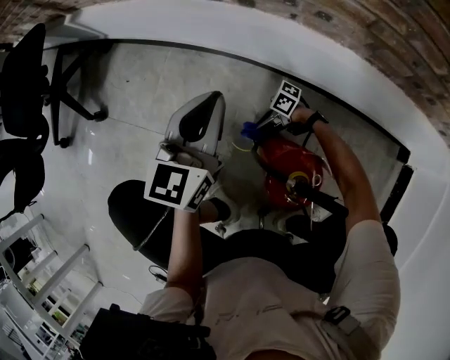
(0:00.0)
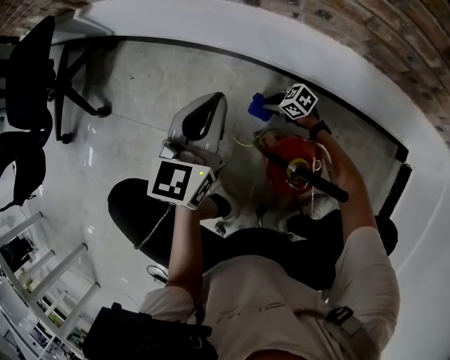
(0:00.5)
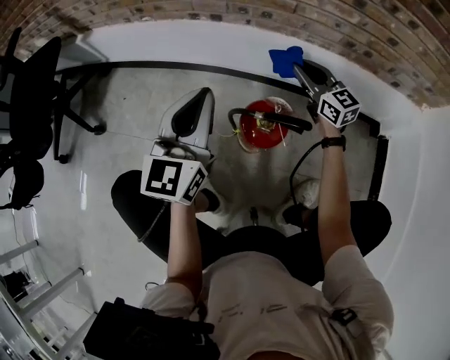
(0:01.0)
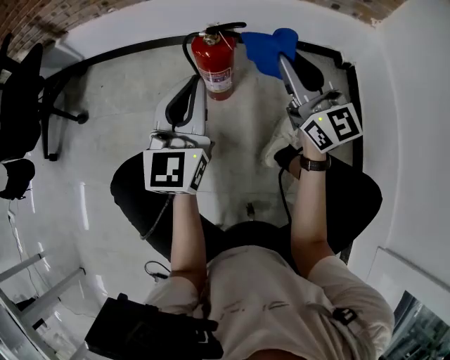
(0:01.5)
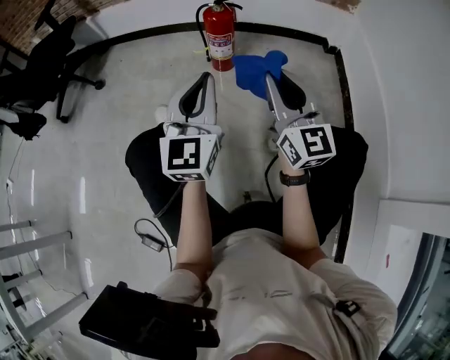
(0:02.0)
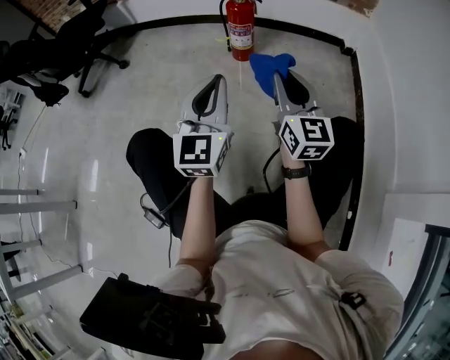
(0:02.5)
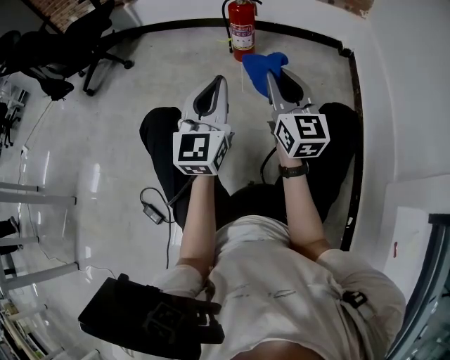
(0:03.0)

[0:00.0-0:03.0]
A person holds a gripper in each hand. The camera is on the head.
0:00.0 to 0:01.5: The right gripper travels upward by roughly 50 cm, and turns by some 130 degrees, while the left gripper moves some 40 cm, and swivels approximately 20 degrees.
0:01.5 to 0:03.0: The grippers both shift backward by approximately 40 cm.

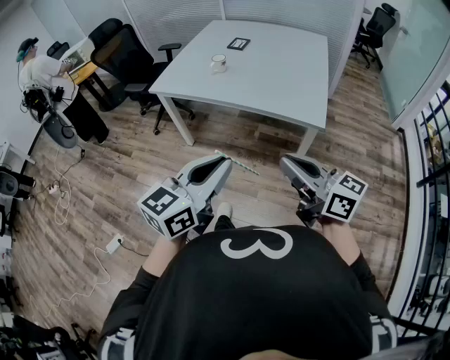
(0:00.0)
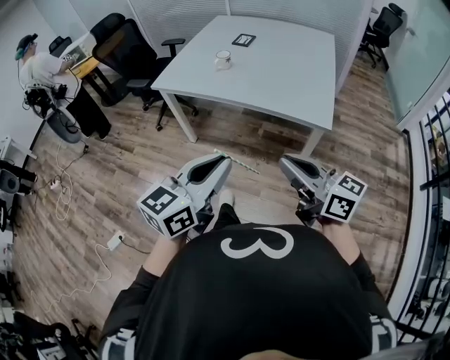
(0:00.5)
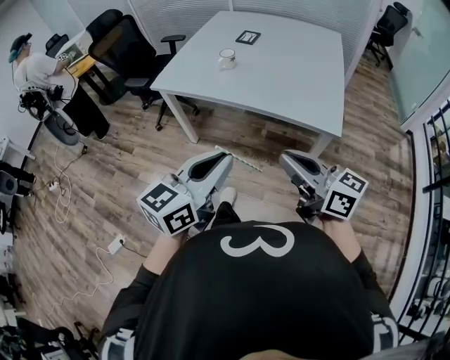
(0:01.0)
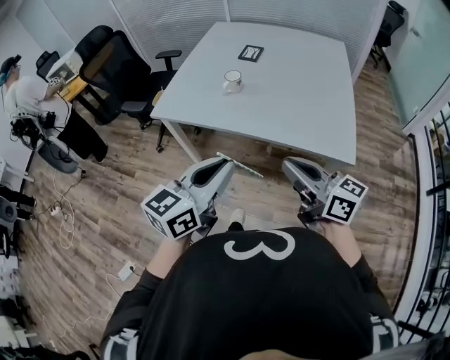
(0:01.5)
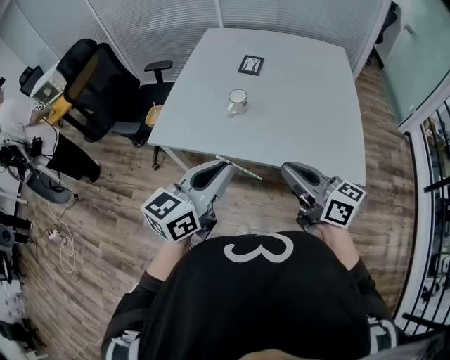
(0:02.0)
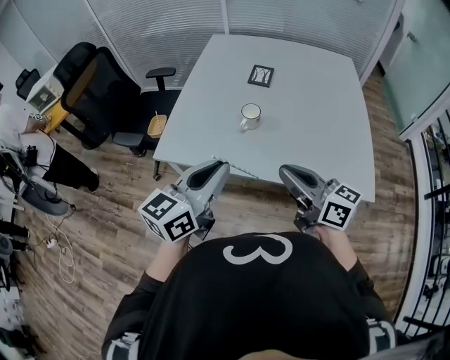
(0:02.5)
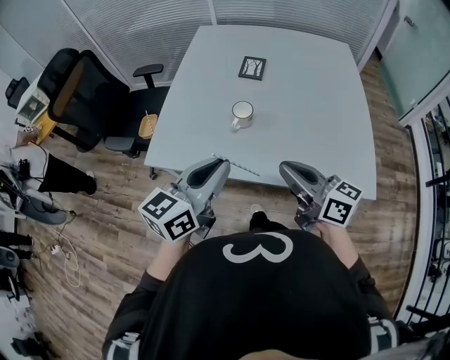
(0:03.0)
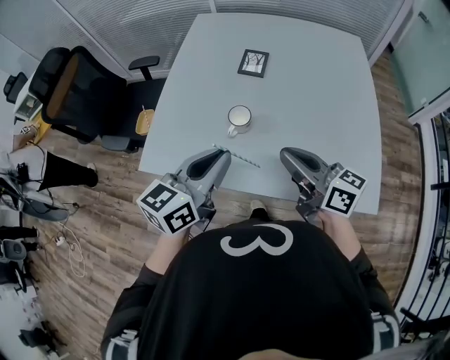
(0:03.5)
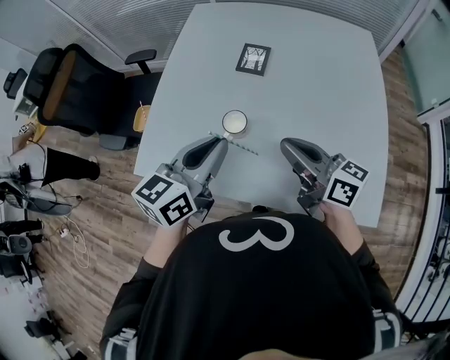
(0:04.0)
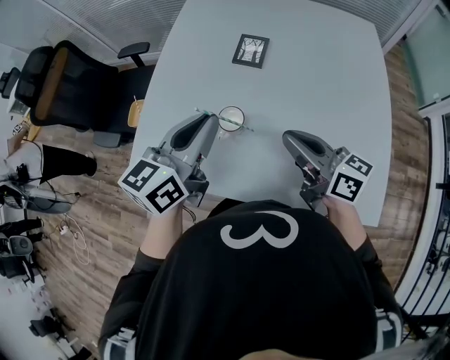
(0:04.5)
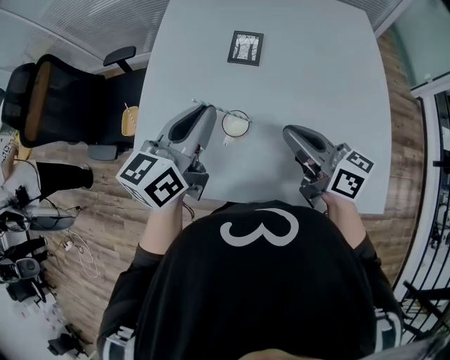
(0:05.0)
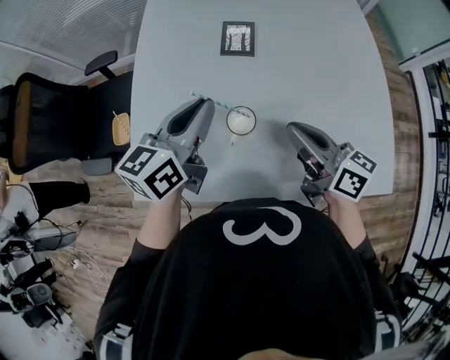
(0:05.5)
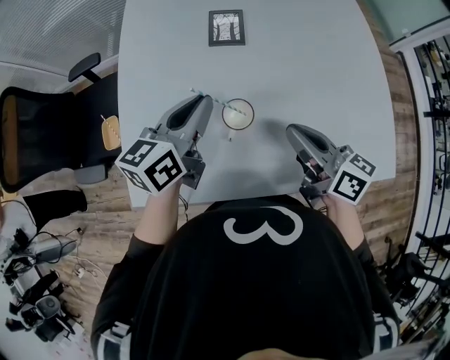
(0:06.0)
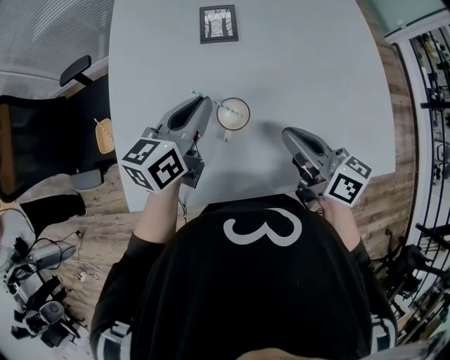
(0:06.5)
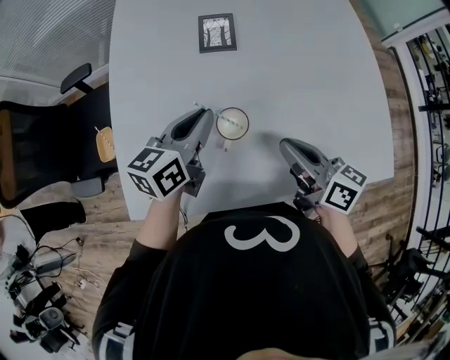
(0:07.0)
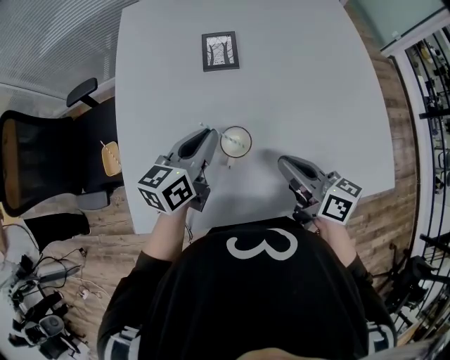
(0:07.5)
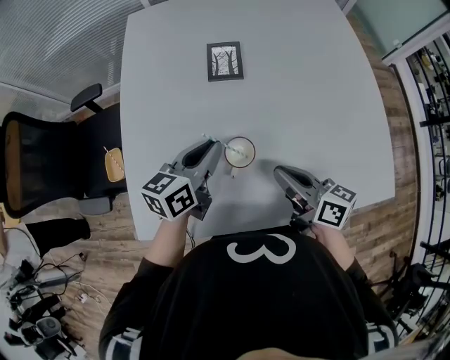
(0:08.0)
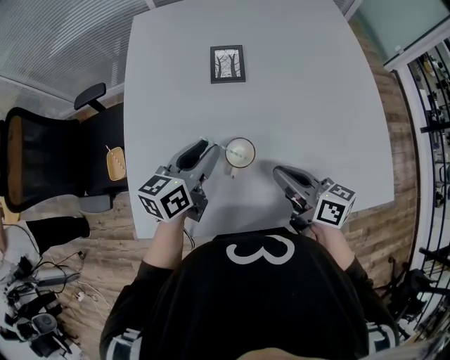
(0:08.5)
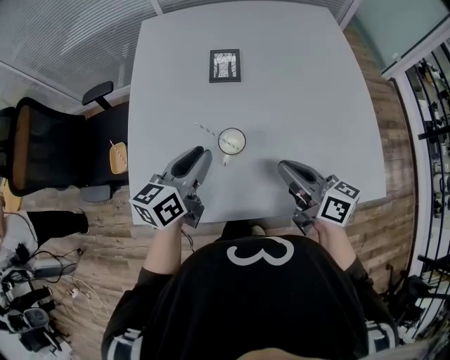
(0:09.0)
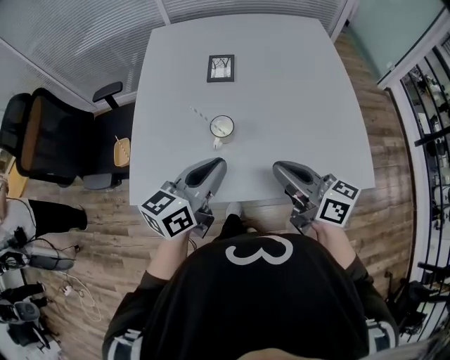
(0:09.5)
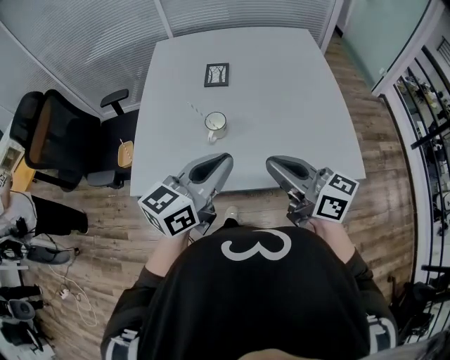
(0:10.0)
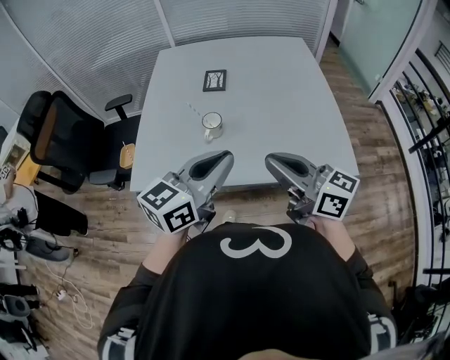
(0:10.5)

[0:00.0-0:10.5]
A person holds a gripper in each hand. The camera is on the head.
0:00.0 to 0:02.0: The two grippers go approximately 35 cm forward.
0:02.0 to 0:04.0: Both grippers move forward, some 30 cm.
0:04.0 to 0:06.5: The left gripper moves forward and downward, about 20 cm. Meanwhile the right gripper shifts about 10 cm downward, and swivels approximately 30 degrees.
0:06.5 to 0:08.5: The left gripper opens.
0:08.5 to 0:10.5: The left gripper heads backward, upward and to the right, covering roughly 40 cm, changes its angle by about 20 degrees, and closes up. The right gripper is displaced backward and upward by about 30 cm, and rotates approximately 30 degrees.

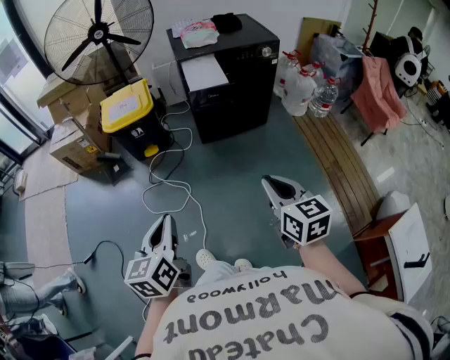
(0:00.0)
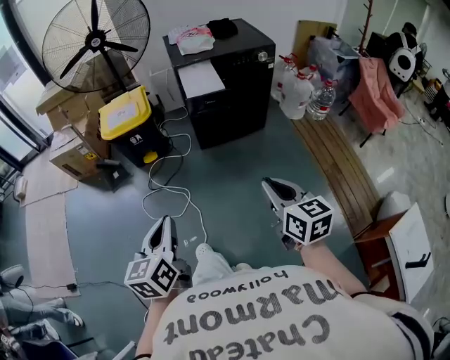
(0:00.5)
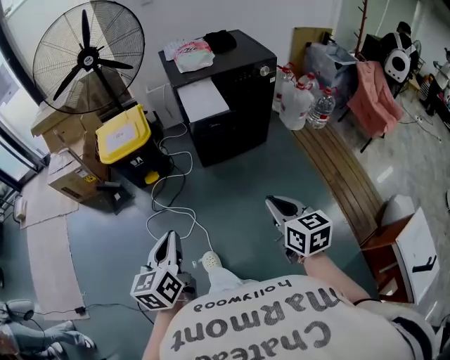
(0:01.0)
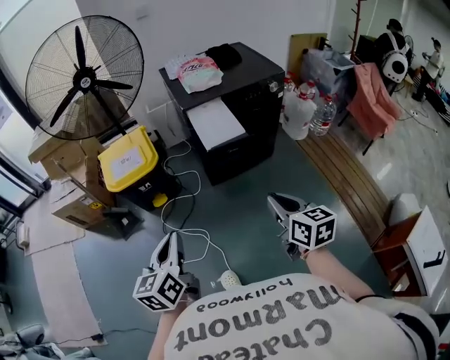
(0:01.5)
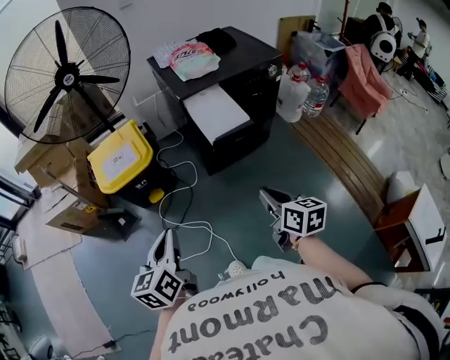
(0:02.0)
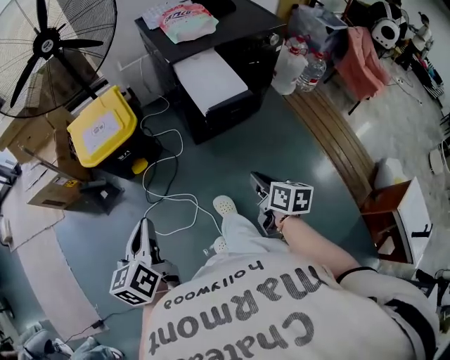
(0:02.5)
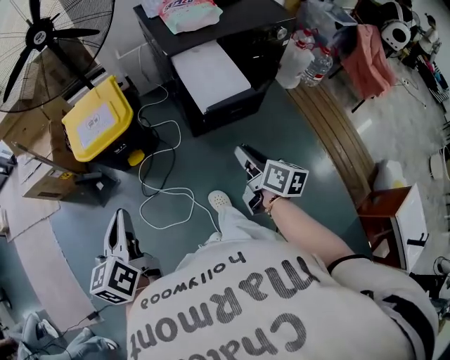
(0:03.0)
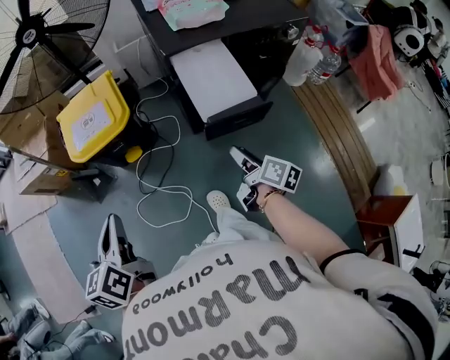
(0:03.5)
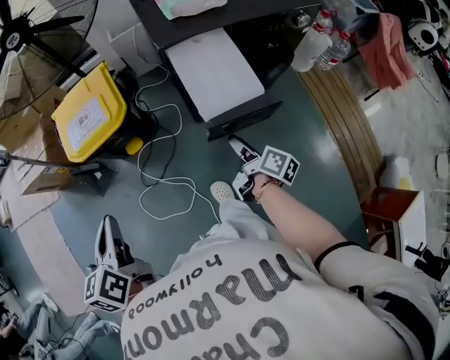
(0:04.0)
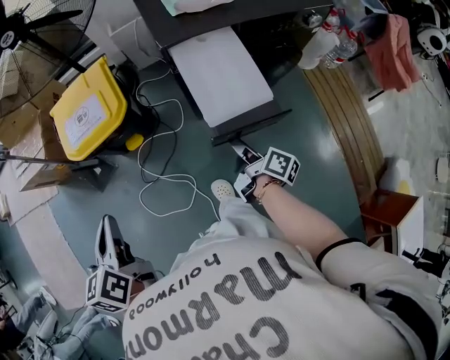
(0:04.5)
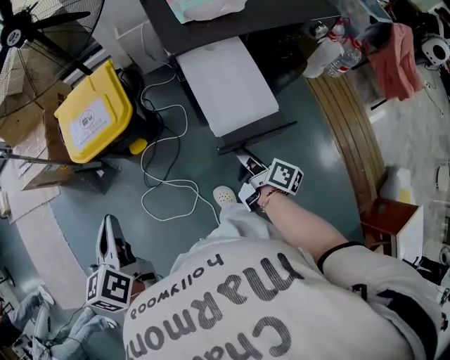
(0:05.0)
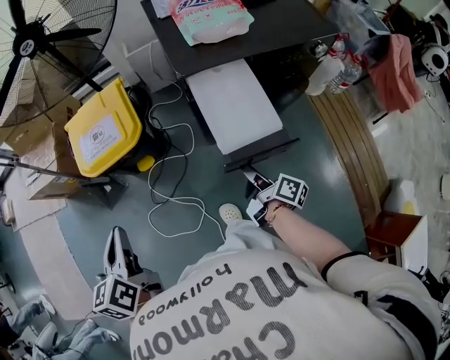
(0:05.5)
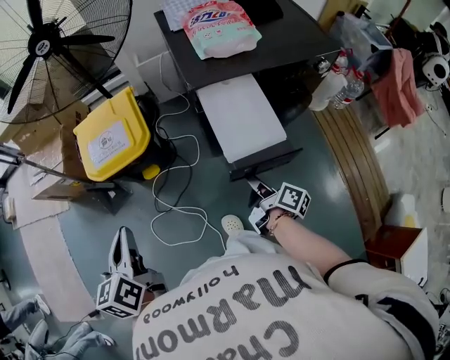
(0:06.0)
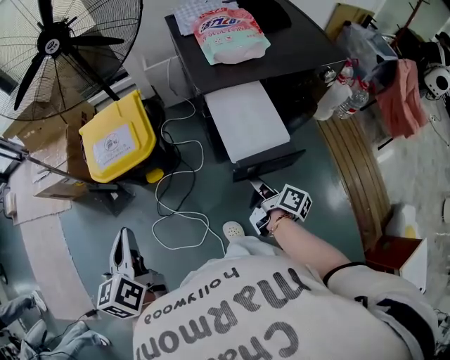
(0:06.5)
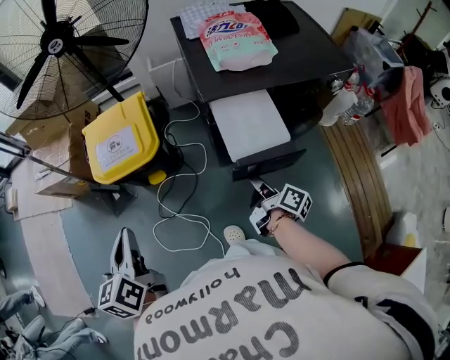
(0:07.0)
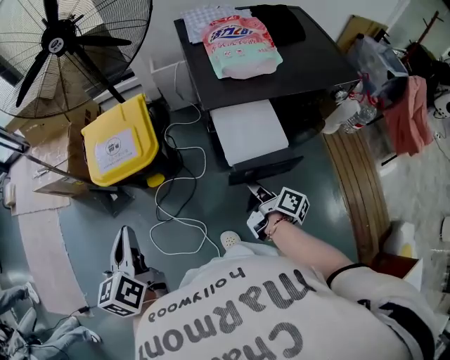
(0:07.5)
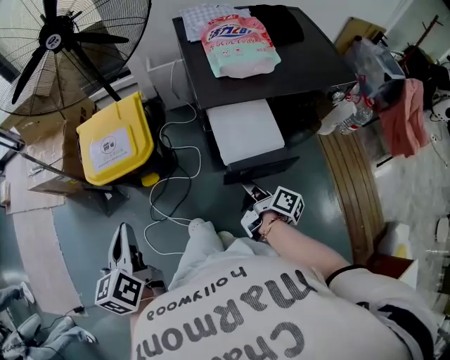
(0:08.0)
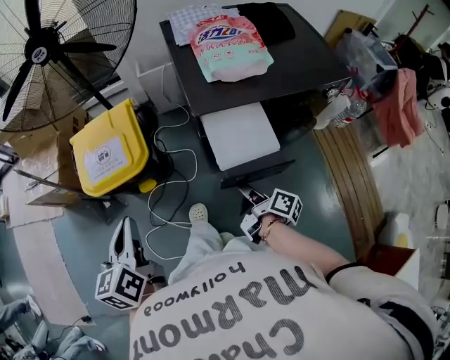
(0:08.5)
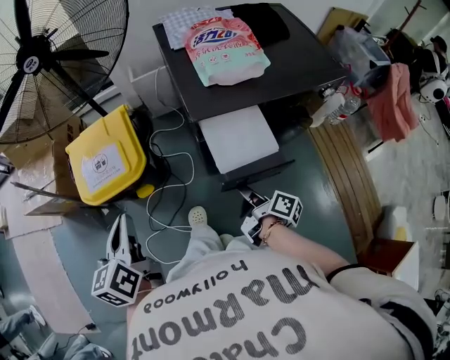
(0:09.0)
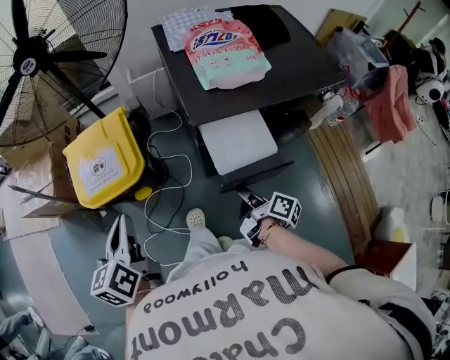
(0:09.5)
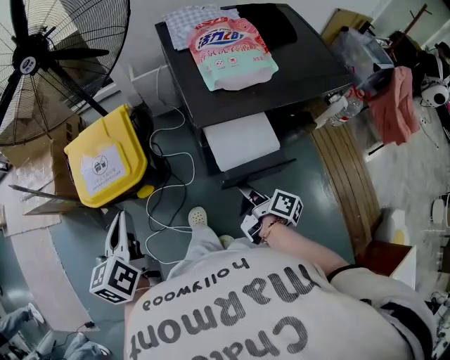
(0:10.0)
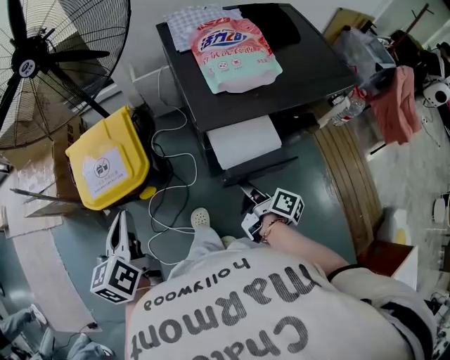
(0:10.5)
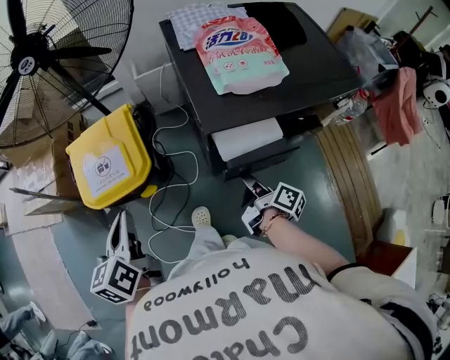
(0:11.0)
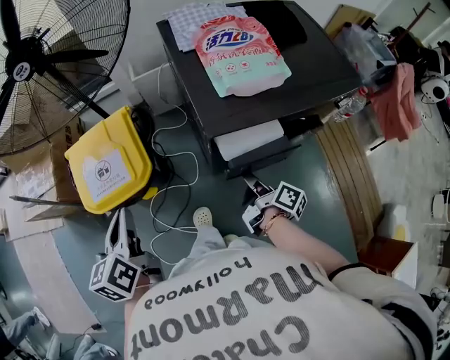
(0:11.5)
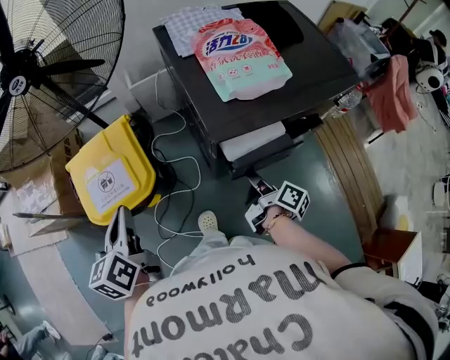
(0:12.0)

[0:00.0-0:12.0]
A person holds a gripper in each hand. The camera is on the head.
0:00.0 to 0:02.0: The grippers both shift forward and to the left by approximately 25 cm. The right gripper swivels roughly 20 degrees.
0:02.0 to 0:04.0: The right gripper shifts some 25 cm forward and downward, rotates around the line of its fingers by roughly 40 degrees, clockwise from behind, and opens its fingers; the left gripper shifts about 15 cm forward and to the left.
0:04.0 to 0:06.0: The right gripper closes up.
0:06.0 to 0:08.0: The left gripper moves some 5 cm. The right gripper is displaced forward by approximately 10 cm.
0:08.0 to 0:10.0: The left gripper shifts approximately 10 cm forward.
0:10.0 to 0:12.0: Both grippers travel together forward, about 5 cm.

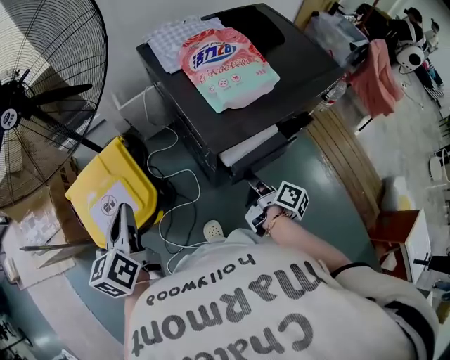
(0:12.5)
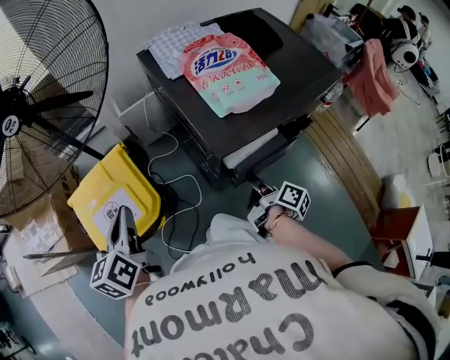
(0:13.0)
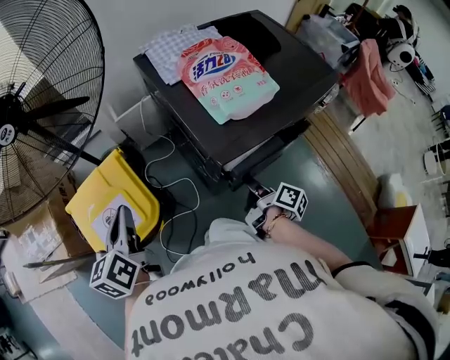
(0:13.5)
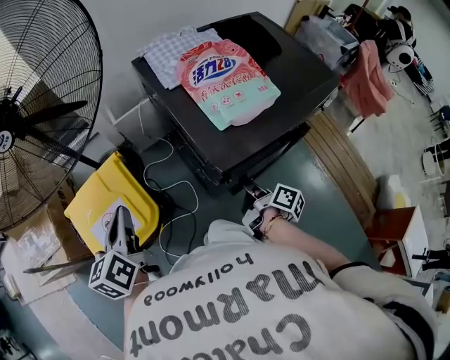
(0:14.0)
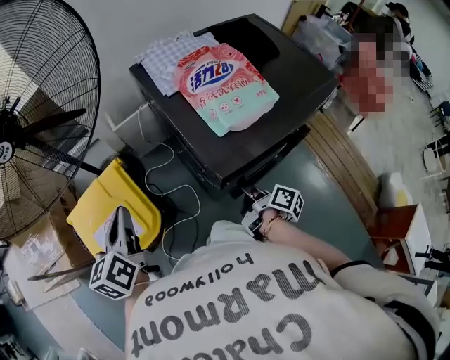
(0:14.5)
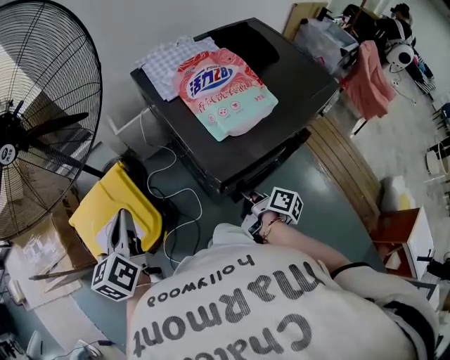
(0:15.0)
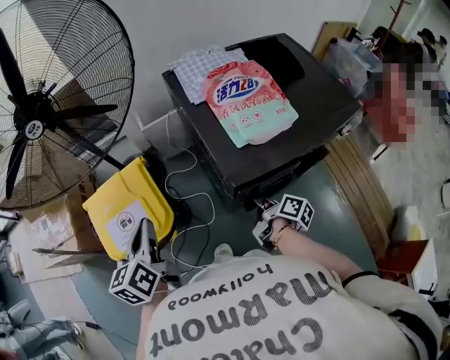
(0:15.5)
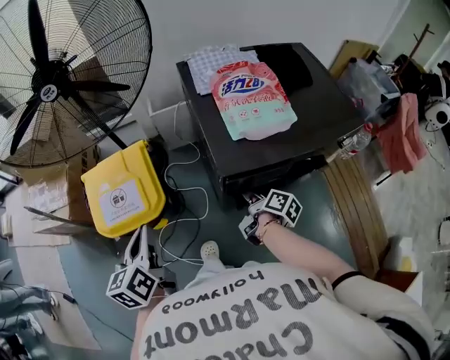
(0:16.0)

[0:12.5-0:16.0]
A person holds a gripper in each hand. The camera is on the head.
0:12.5 to 0:14.5: The left gripper moves forward, approximately 5 cm.
0:14.5 to 0:16.0: The left gripper heads backward, covering roughly 15 cm.
